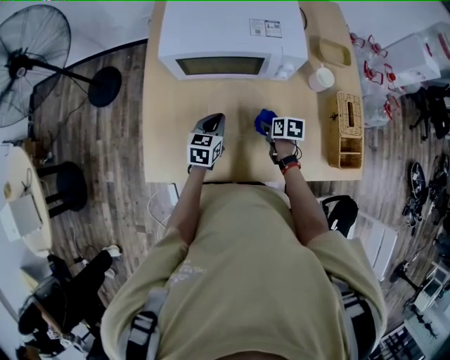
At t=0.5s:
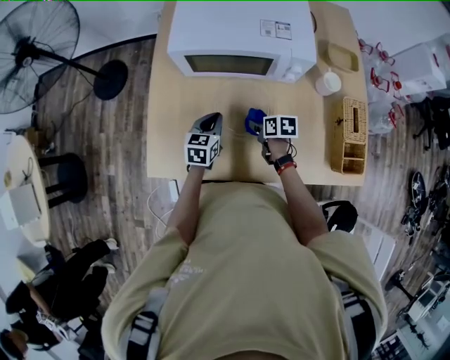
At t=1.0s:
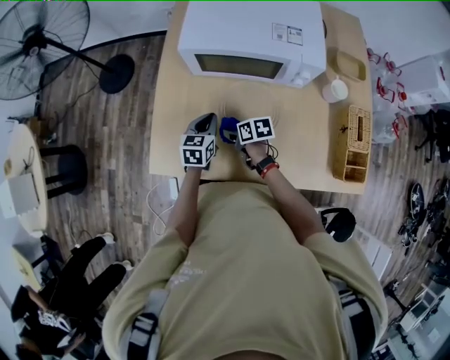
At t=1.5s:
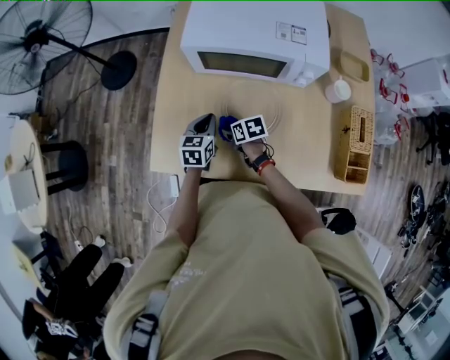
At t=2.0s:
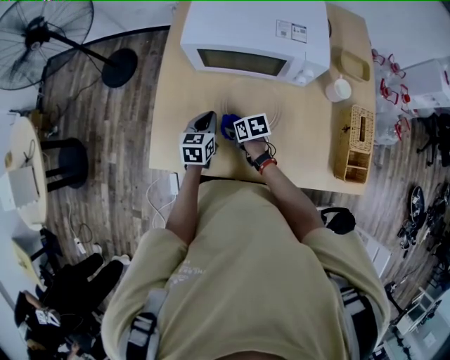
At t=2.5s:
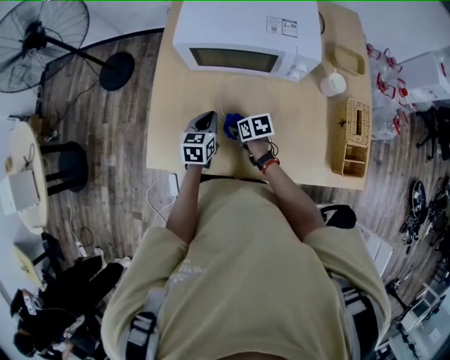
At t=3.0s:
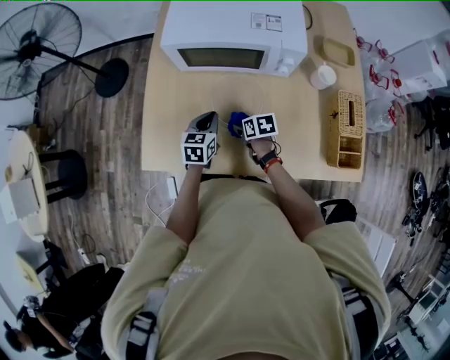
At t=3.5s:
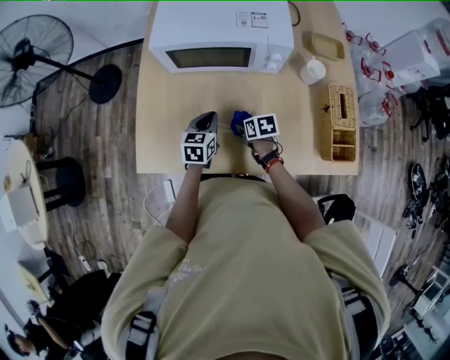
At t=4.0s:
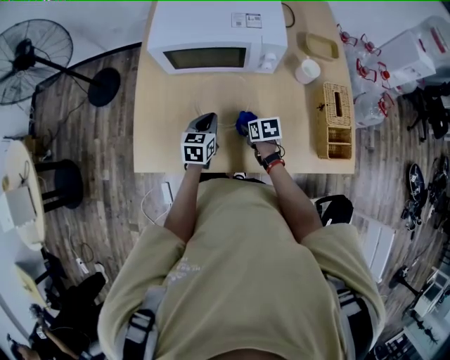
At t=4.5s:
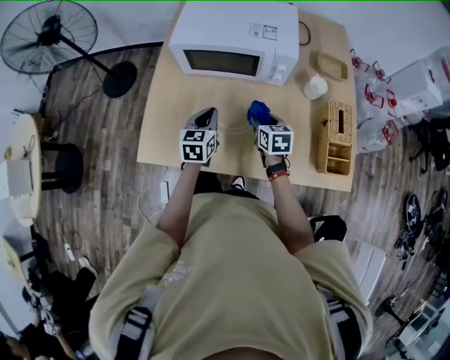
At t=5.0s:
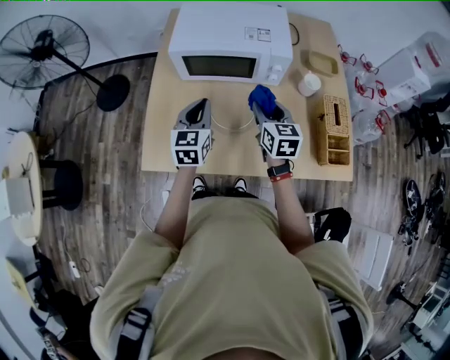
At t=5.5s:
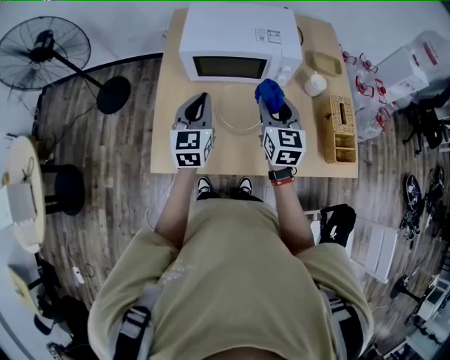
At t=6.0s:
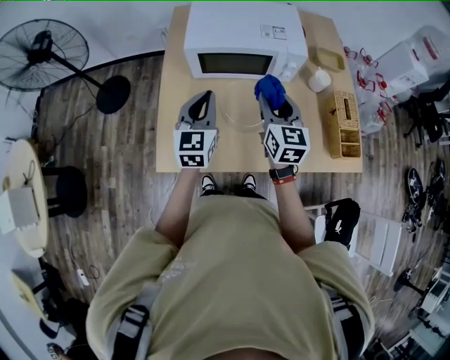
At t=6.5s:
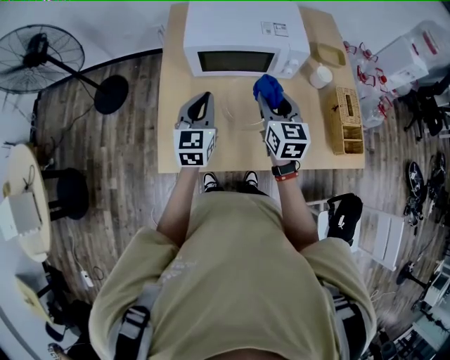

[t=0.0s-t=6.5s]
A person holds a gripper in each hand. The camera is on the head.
t=0.0s to t=2.0s: The right gripper moves to the left, approximately 20 cm, and turns by approximately 30 degrees; the left gripper is displaced to the left by approximately 10 cm.
t=2.0s to t=4.5s: The left gripper is displaced upward, to the right and backward by approximately 10 cm; the right gripper moves to the right and upward, roughly 20 cm, and rotates approximately 30 degrees.
t=4.5s to t=6.5s: The grippers both shift upward and to the left by some 20 cm. The right gripper changes its angle by approximately 30 degrees.

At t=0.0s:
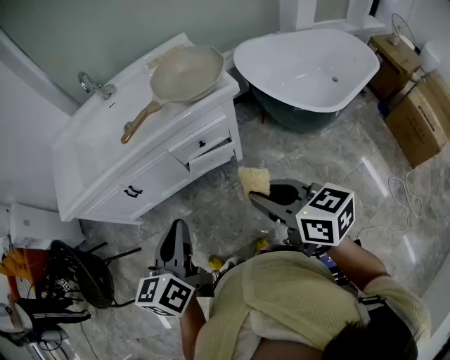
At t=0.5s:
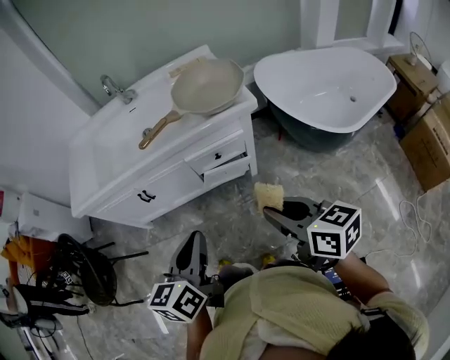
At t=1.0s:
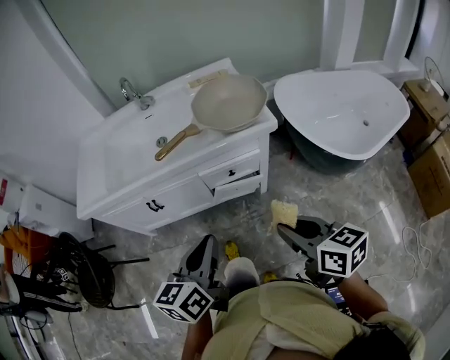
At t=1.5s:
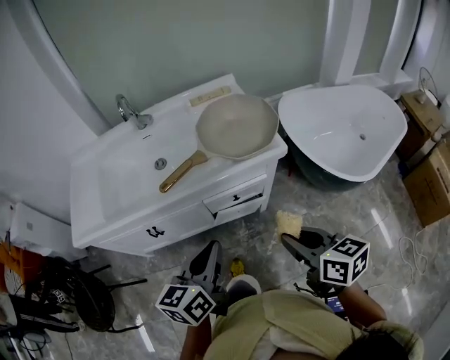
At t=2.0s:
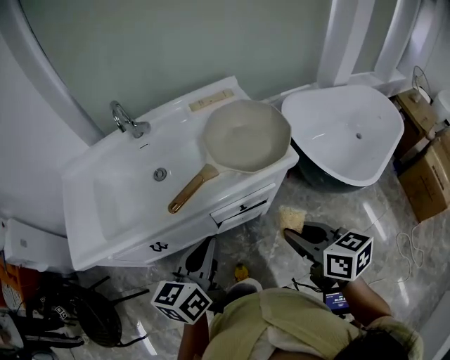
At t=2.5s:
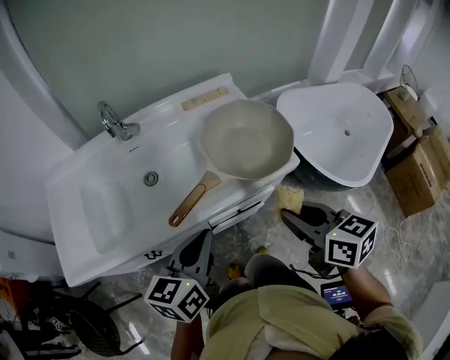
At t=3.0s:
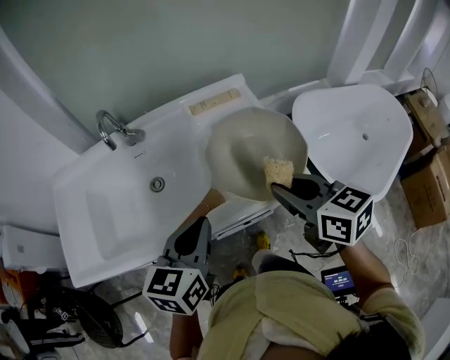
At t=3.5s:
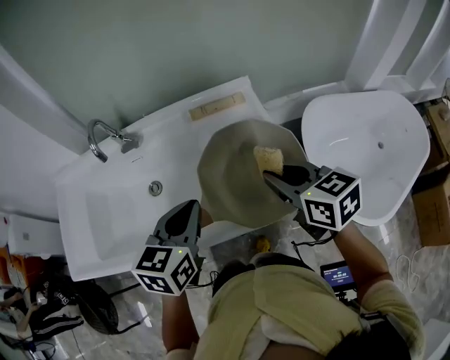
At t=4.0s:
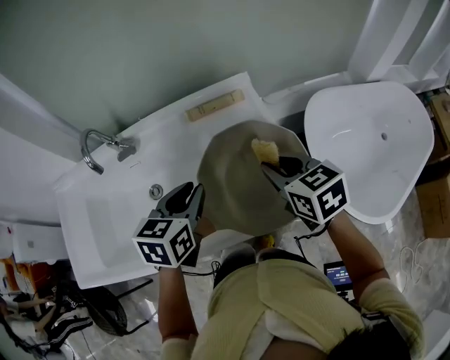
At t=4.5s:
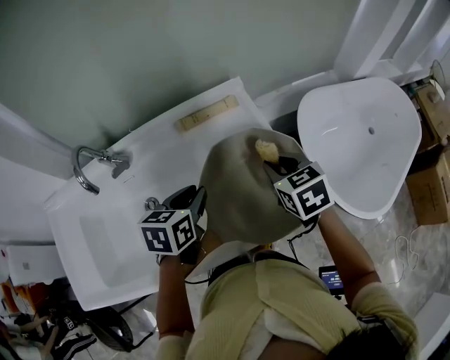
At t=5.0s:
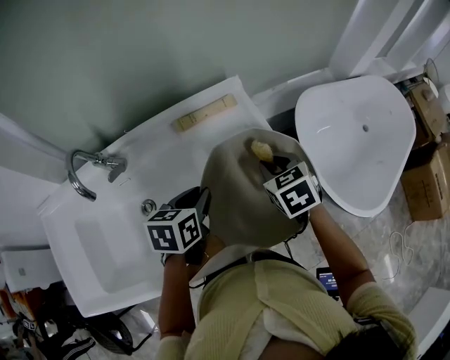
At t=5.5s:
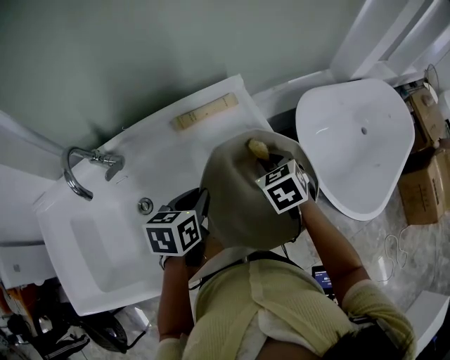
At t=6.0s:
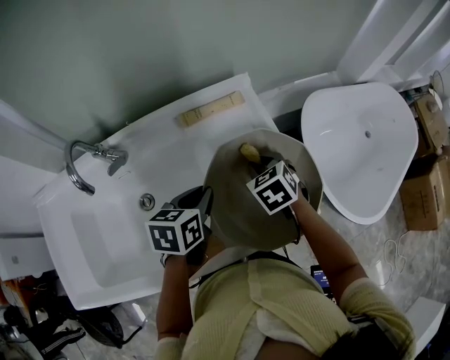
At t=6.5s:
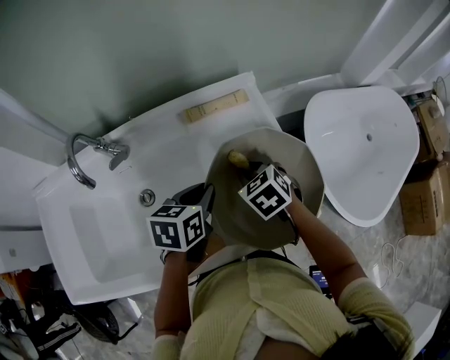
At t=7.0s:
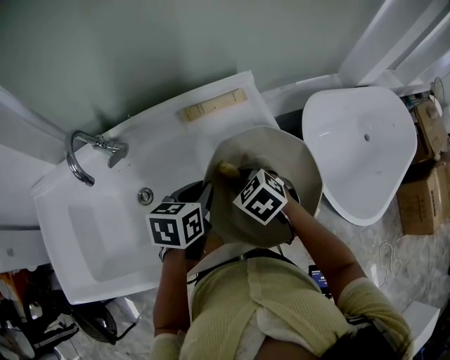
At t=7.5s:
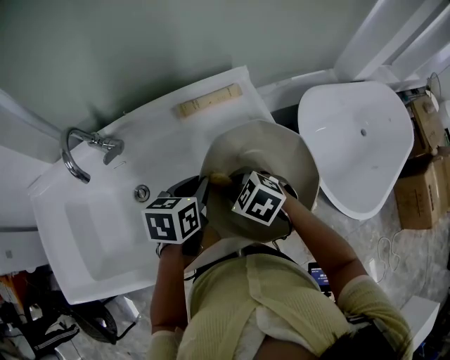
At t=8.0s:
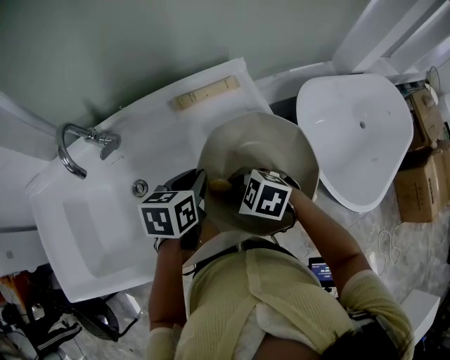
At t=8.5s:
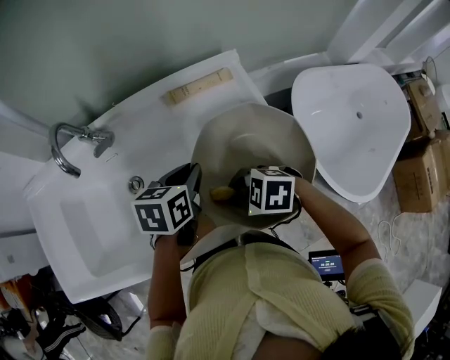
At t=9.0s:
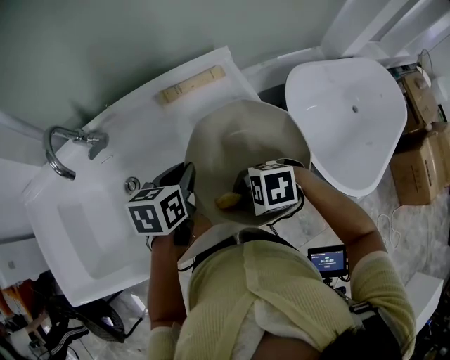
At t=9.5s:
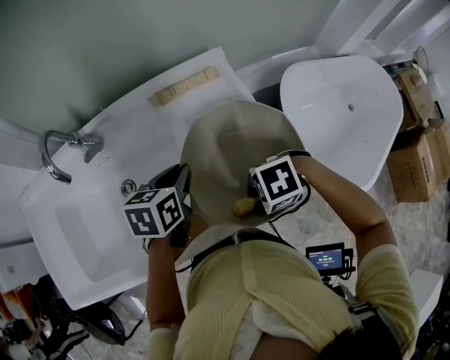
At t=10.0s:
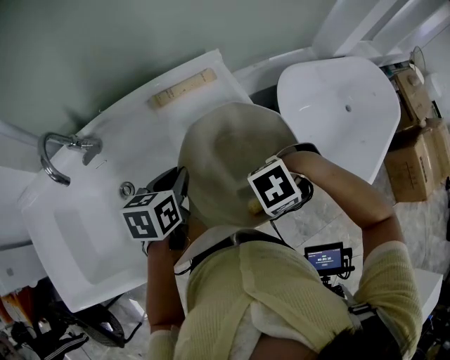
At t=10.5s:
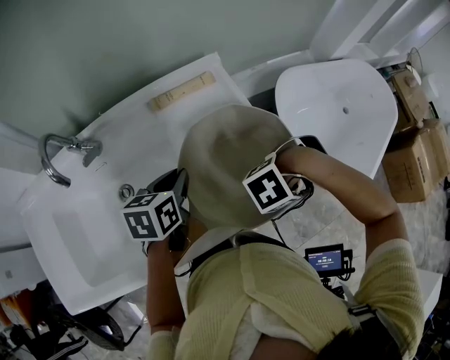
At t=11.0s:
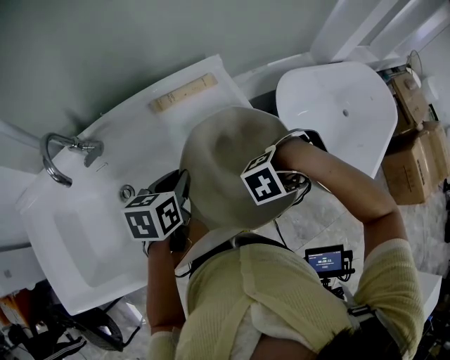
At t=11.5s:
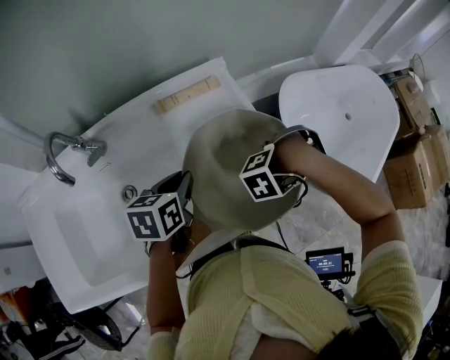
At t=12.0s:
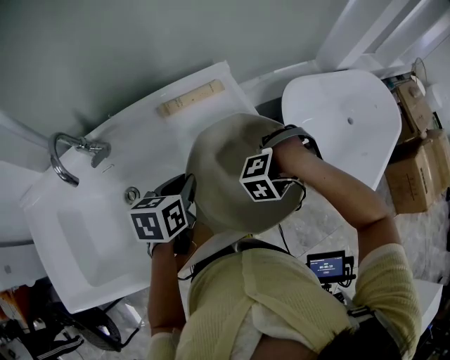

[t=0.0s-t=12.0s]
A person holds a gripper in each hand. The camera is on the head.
t=0.0s to t=2.0s: Both grippers move forward, about 20 cm.
t=2.0s to t=4.0s: The two grippers go some 30 cm forward. The right gripper swivels roughly 20 degrees, while the left gripper turns by about 20 degrees.
t=4.0s to t=6.0s: The left gripper moves downward, roughly 5 cm, while the right gripper moves downward and forward, some 15 cm, and changes its angle by approximately 30 degrees.
t=6.0s to t=8.0s: The right gripper changes place by approximately 15 cm, and changes its angle by some 40 degrees.
t=8.0s to t=10.0s: The right gripper moves some 15 cm, and swivels some 50 degrees.
t=10.0s to t=12.0s: The right gripper shifts by roughly 15 cm, and rotates some 50 degrees.

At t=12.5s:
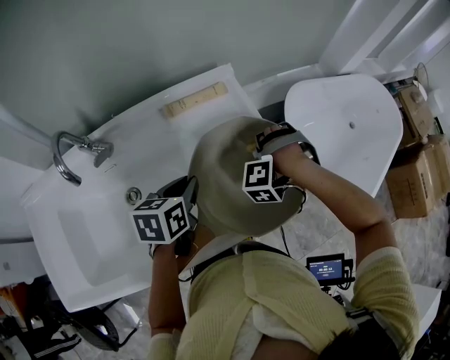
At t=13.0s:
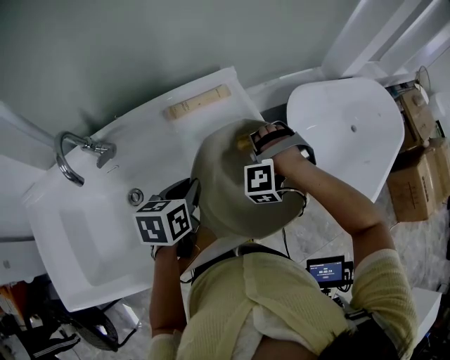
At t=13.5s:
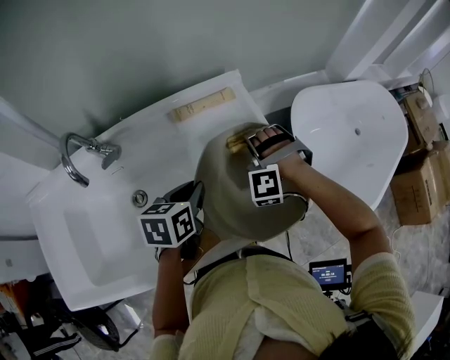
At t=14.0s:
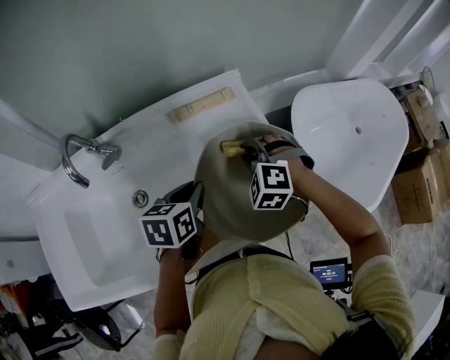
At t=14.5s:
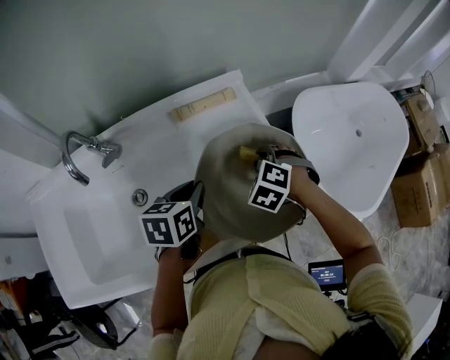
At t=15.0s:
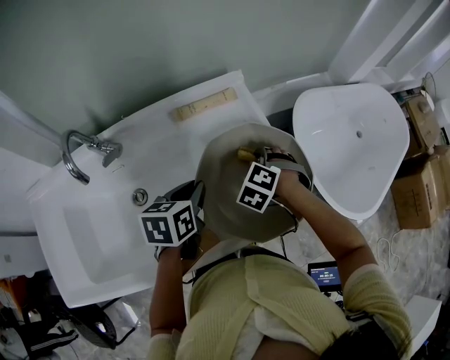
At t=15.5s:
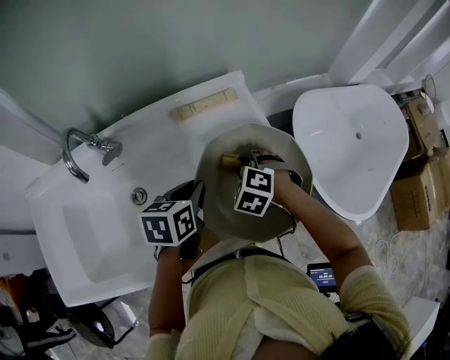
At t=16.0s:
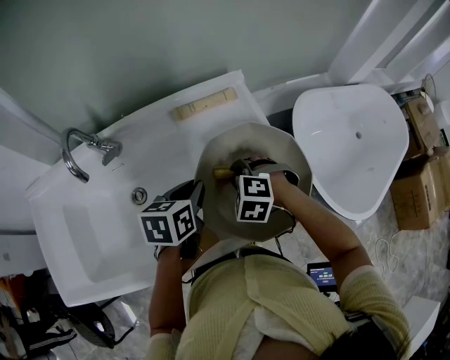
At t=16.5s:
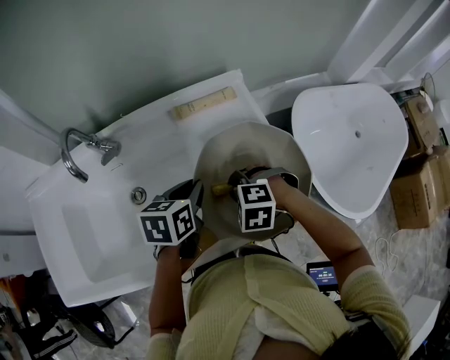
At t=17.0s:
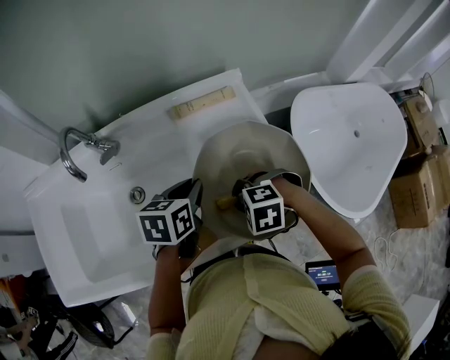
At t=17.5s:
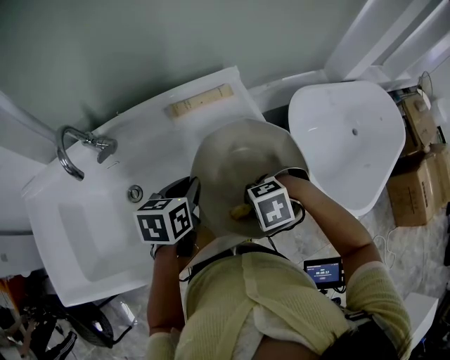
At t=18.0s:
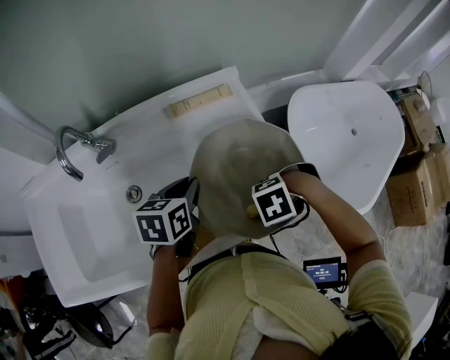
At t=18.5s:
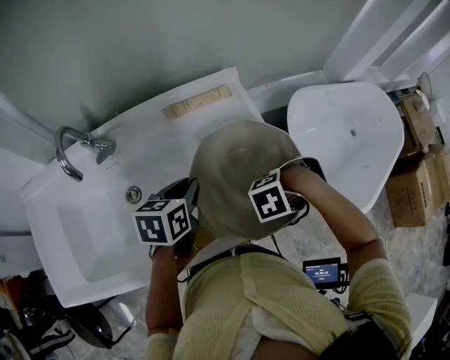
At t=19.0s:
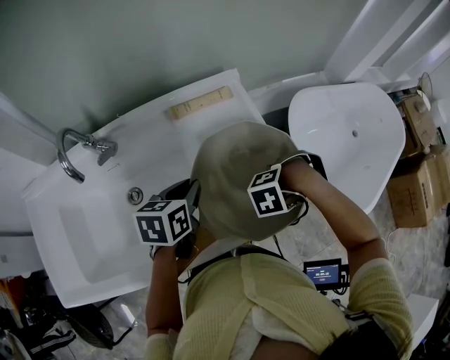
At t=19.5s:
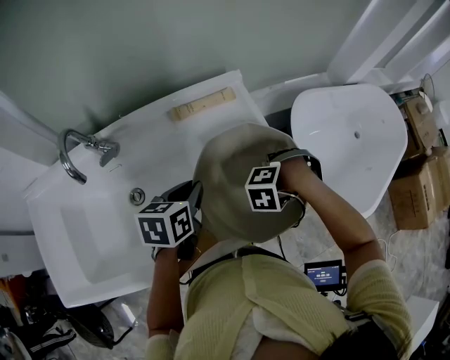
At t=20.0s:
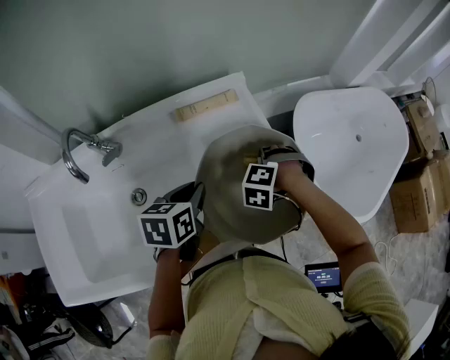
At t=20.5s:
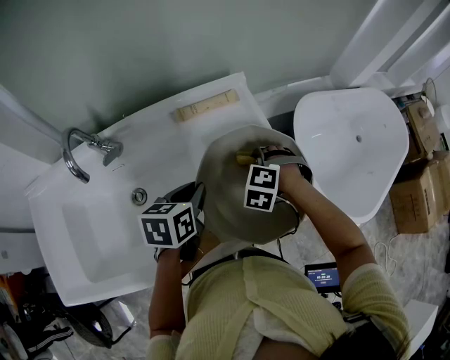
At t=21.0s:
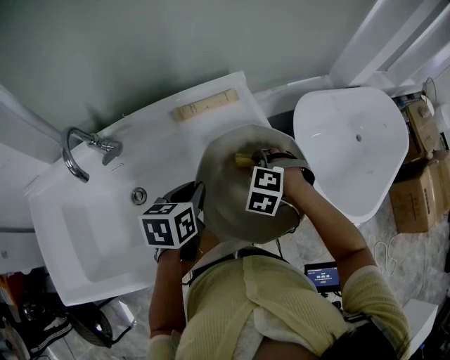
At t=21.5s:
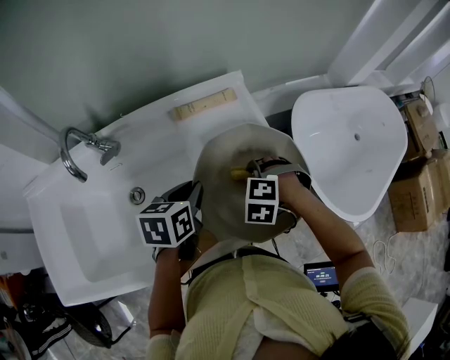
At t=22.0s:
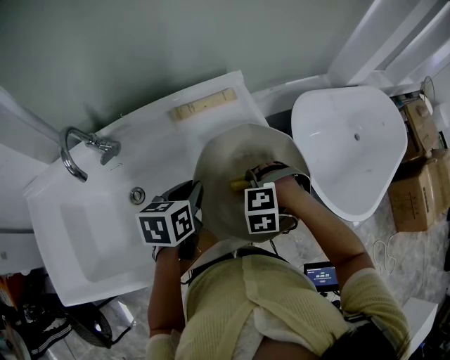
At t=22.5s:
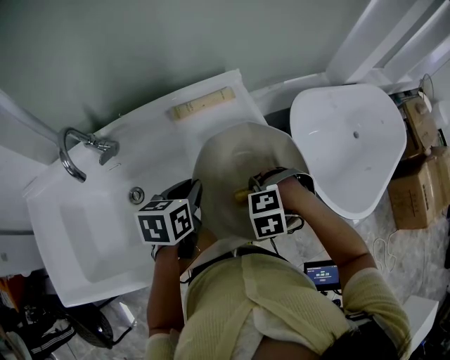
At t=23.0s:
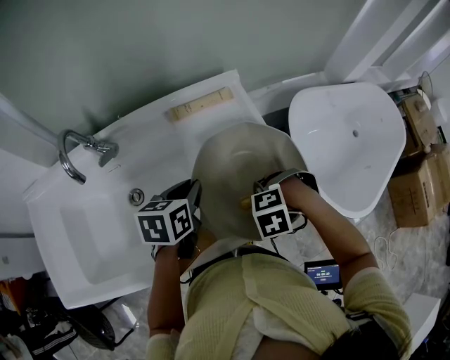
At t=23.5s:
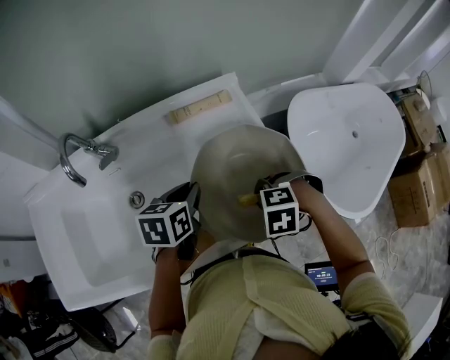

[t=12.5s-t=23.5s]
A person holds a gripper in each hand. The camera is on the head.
t=12.5s to t=14.5s: The right gripper rotates around the line of its fingers by about 40 degrees, clockwise from behind.
t=14.5s to t=16.0s: The right gripper goes about 10 cm to the left and backward.
t=16.0s to t=18.0s: The right gripper shifts by roughly 15 cm, and turns by approximately 50 degrees.
t=18.0s to t=20.0s: The right gripper changes place by approximately 15 cm, and rotates roughly 50 degrees.
t=20.0s to t=21.5s: The right gripper heads backward, covering some 5 cm.
t=21.5s to t=23.5s: The right gripper moves approximately 10 cm.
